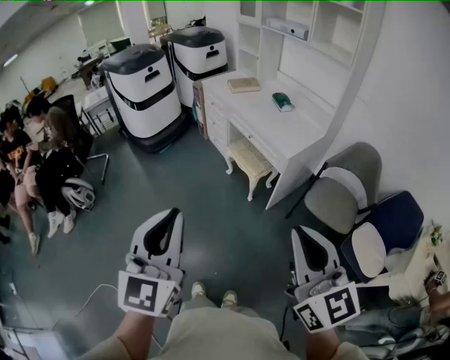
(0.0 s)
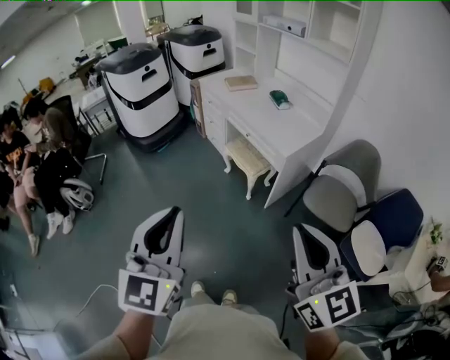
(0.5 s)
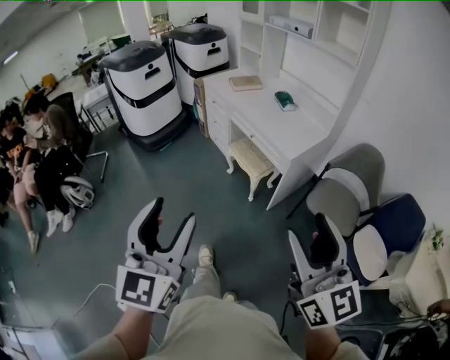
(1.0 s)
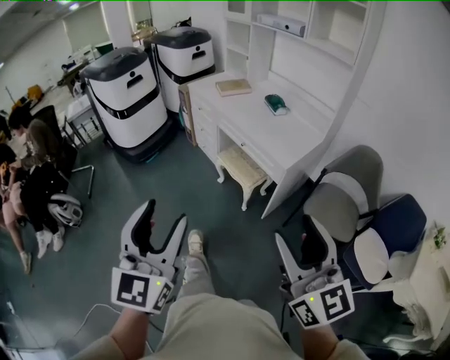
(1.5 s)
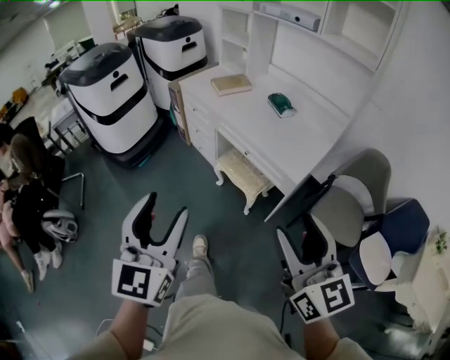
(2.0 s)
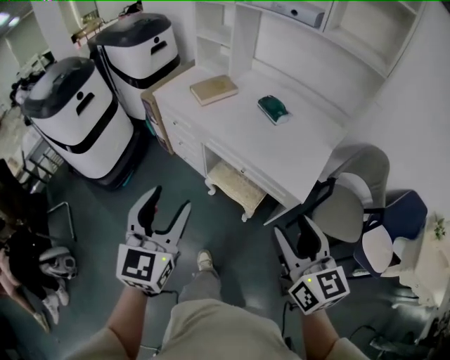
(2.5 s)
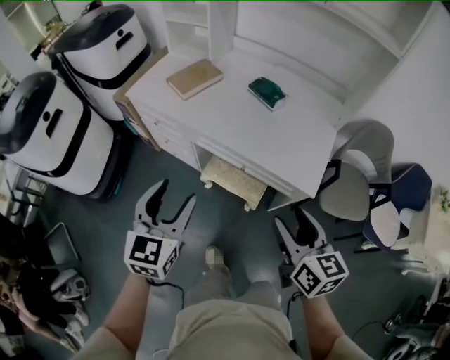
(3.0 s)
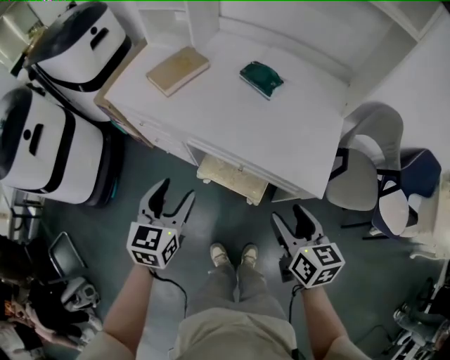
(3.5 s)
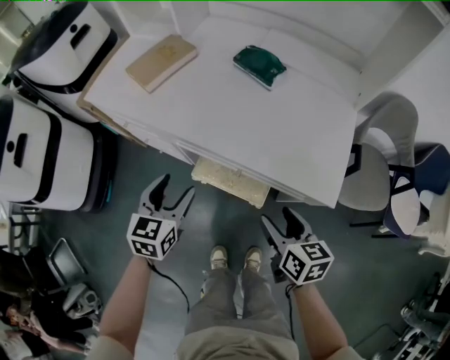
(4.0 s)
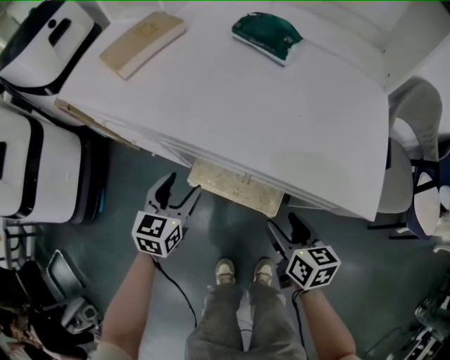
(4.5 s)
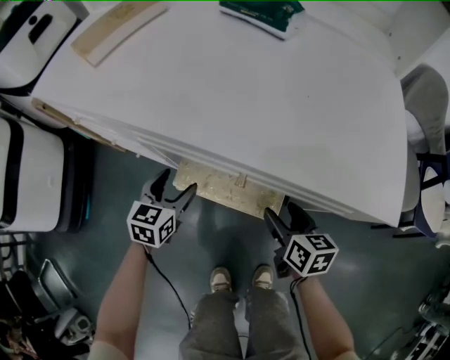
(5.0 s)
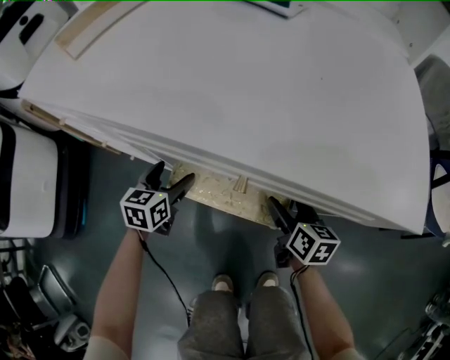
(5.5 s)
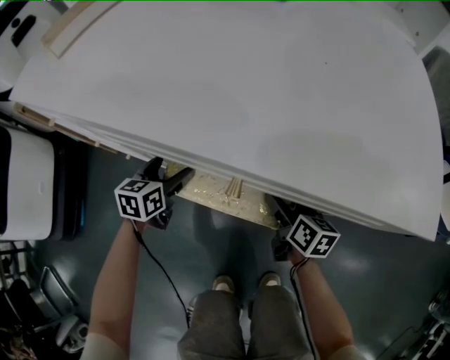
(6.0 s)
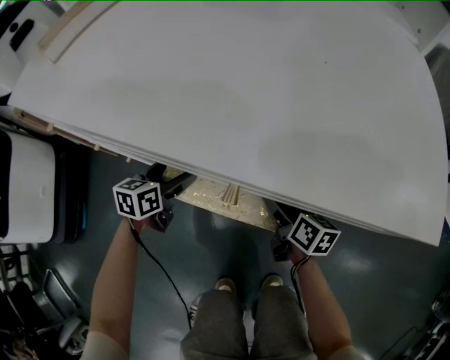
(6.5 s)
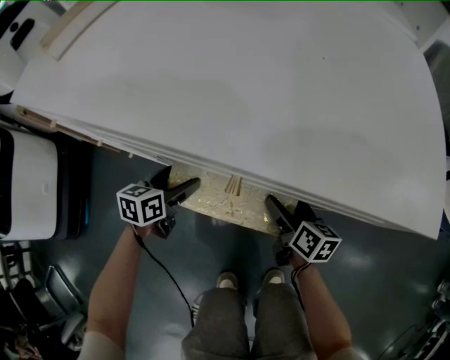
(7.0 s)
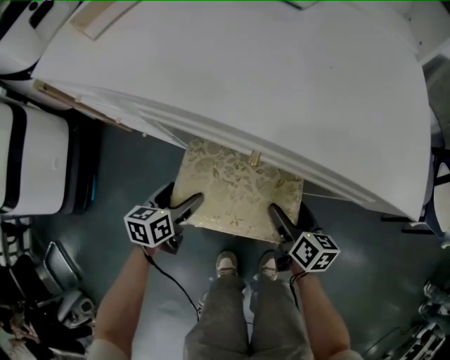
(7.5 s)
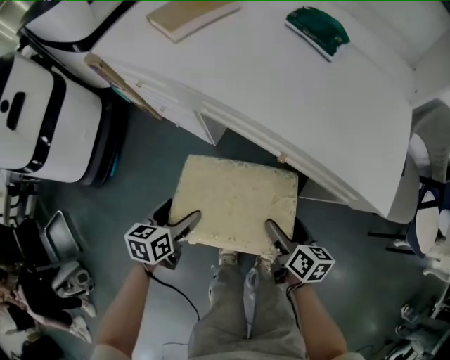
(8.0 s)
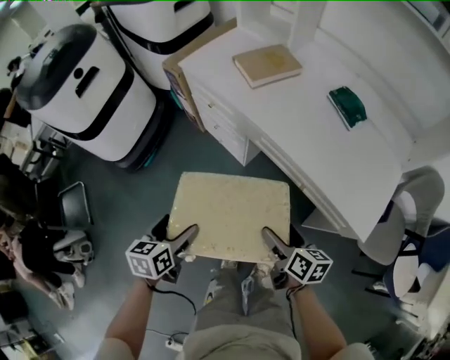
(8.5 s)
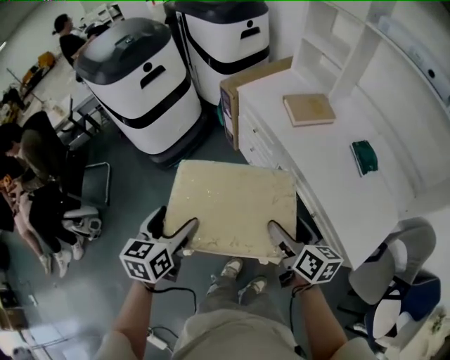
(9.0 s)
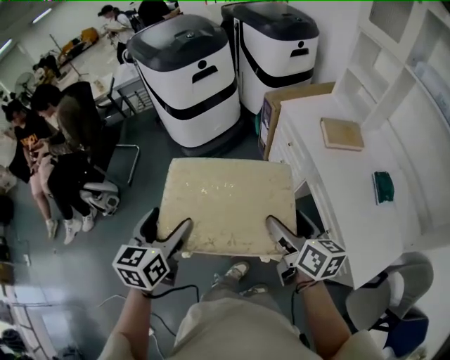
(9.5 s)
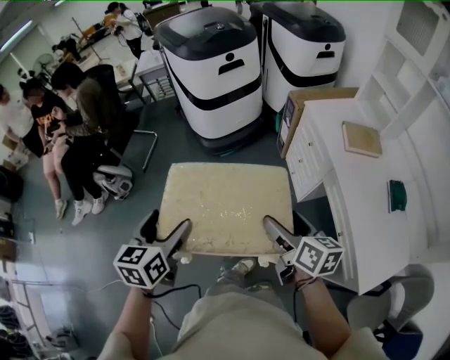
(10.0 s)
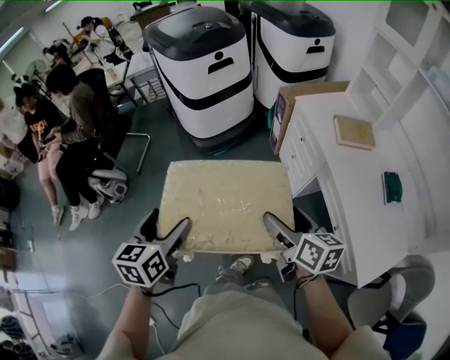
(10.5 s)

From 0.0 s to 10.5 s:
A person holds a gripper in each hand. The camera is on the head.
From 0.0 s to 2.0 s: The two grippers go about 30 cm forward. The right gripper opens its fingers, while the left gripper opens up.
From 2.0 s to 4.0 s: The right gripper travels downward and forward by approximately 50 cm, and points its fingers some 30 degrees further downward. The left gripper goes roughly 60 cm forward and downward, and rotates some 40 degrees.
From 4.0 s to 6.5 s: The two grippers go approximately 40 cm downward. The right gripper changes its angle by approximately 20 degrees, and opens its fingers. The left gripper turns by approximately 20 degrees, and opens.
From 6.5 s to 8.5 s: The grippers both shift upward by about 40 cm. The right gripper rotates about 30 degrees. Meanwhile the left gripper rotates approximately 40 degrees.
From 8.5 s to 10.5 s: Both grippers move upward, roughly 25 cm. The right gripper changes its angle by some 40 degrees. The left gripper rotates roughly 40 degrees.

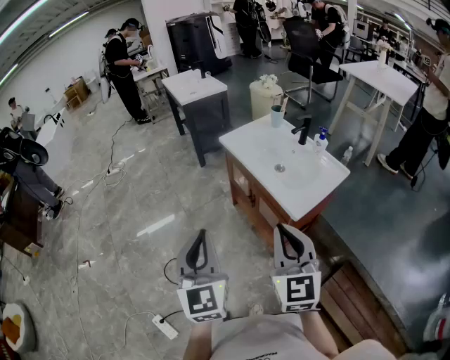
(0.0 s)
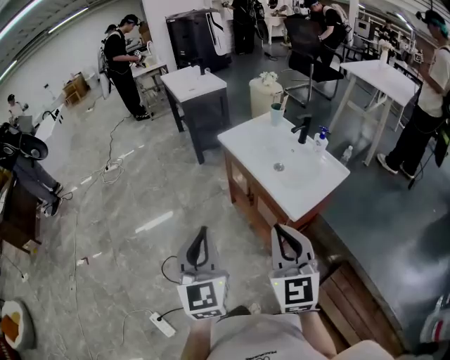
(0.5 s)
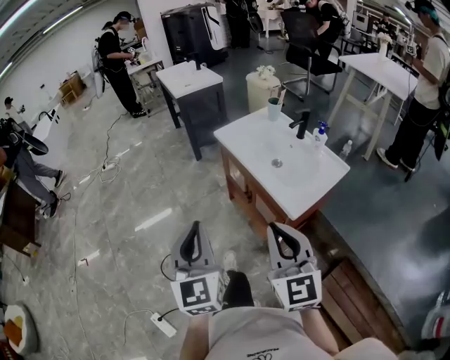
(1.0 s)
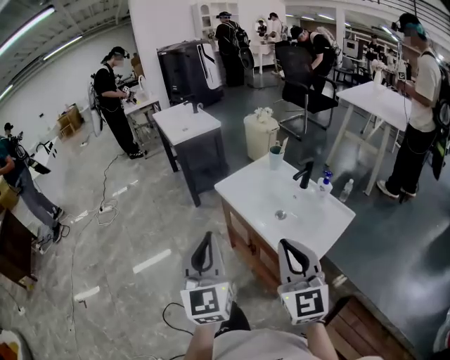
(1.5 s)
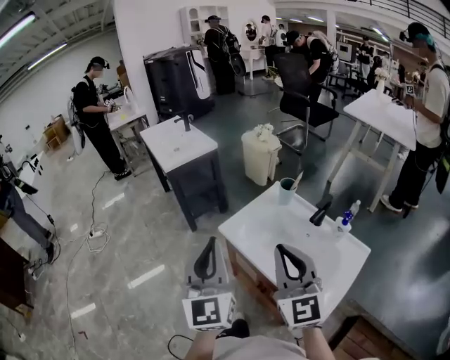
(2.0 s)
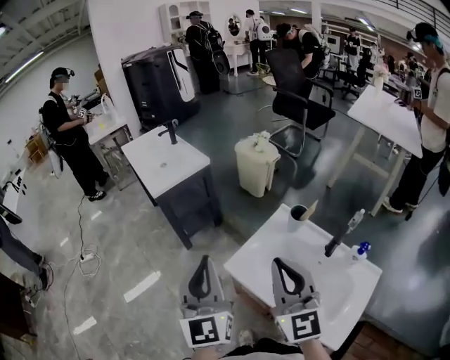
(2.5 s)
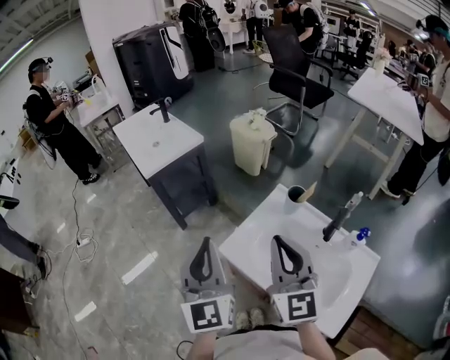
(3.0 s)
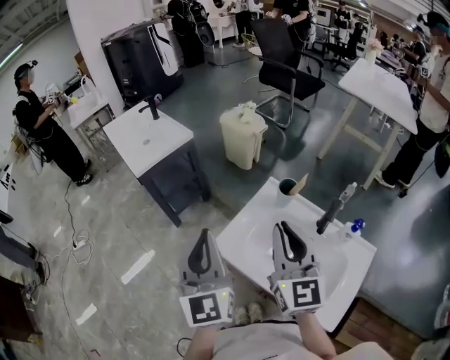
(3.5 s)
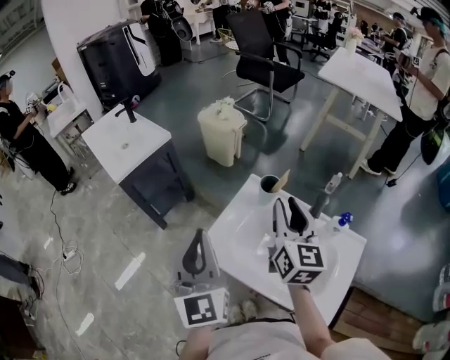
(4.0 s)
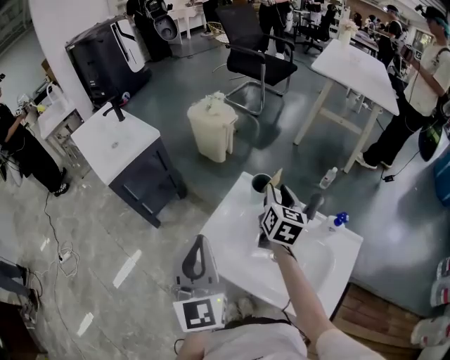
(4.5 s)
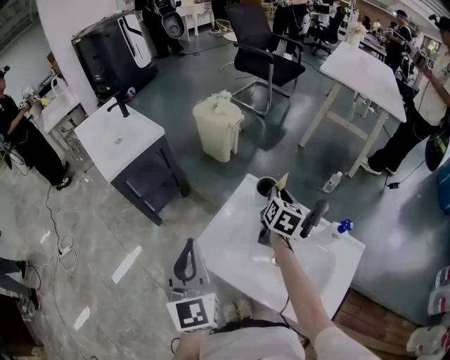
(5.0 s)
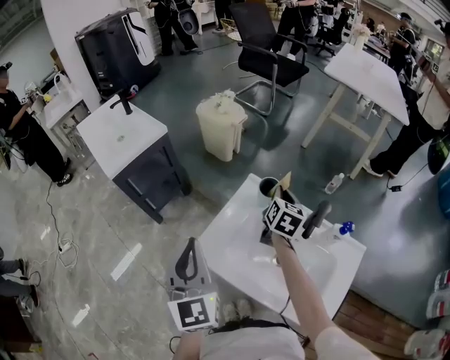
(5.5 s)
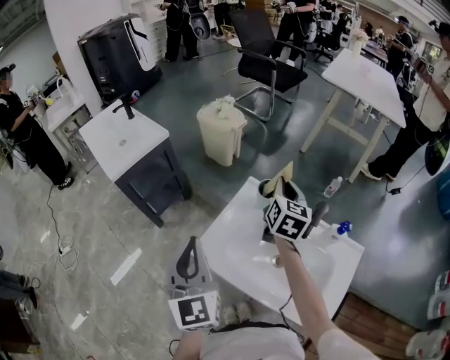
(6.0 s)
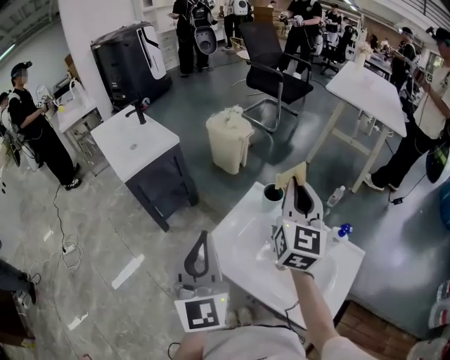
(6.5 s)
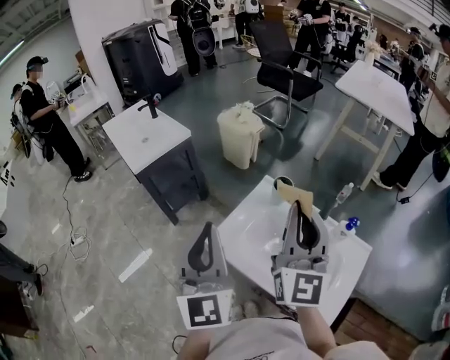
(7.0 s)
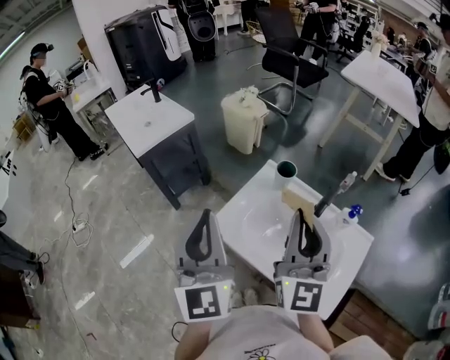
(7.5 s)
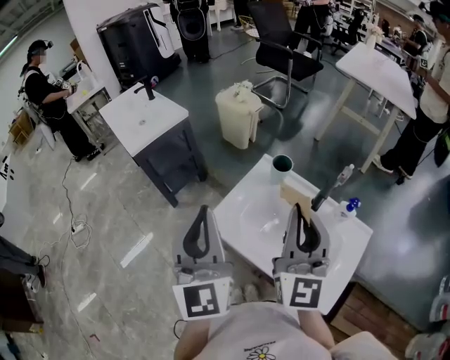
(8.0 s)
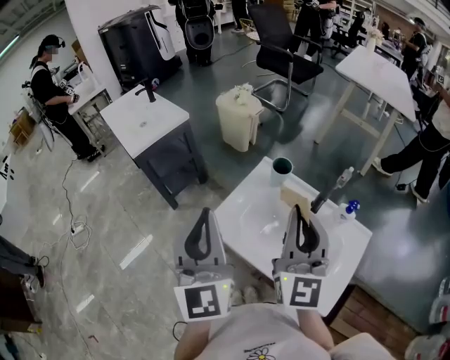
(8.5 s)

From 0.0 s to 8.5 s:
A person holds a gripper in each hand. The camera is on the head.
From 0.0 s to 2.0 s: Both grippers move forward, about 40 cm.
From 2.0 s to 4.0 s: Both grippers move forward, approximately 25 cm. The right gripper changes its angle by roughly 40 degrees.
From 4.0 s to 6.5 s: The right gripper reaches some 15 cm downward, then returns.
From 6.5 s to 8.5 s: The right gripper is displaced backward by roughly 15 cm.

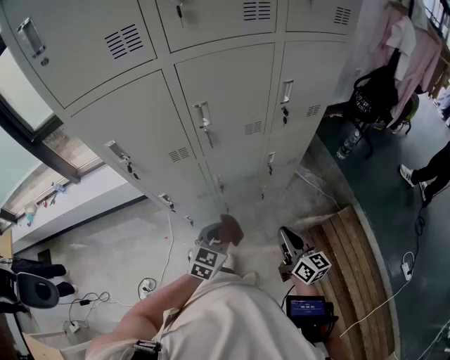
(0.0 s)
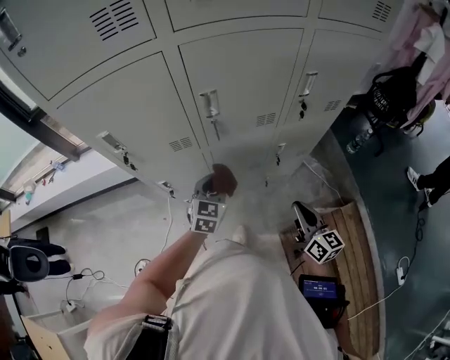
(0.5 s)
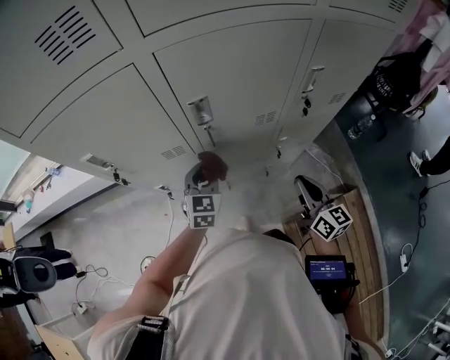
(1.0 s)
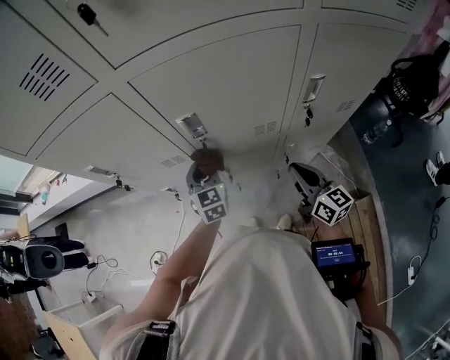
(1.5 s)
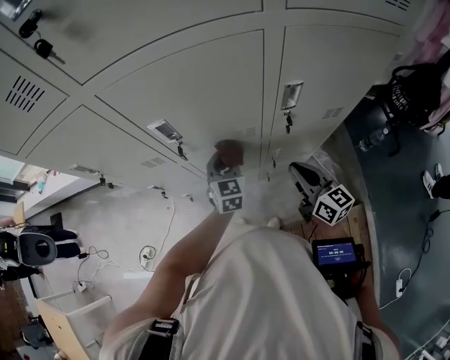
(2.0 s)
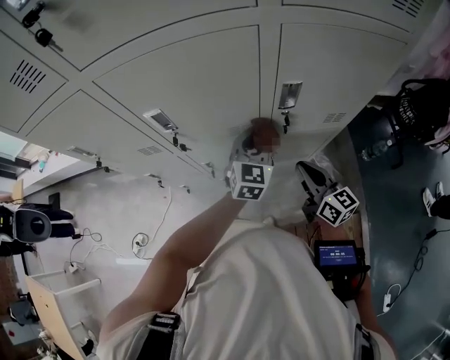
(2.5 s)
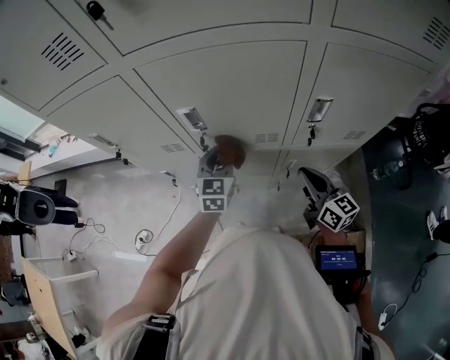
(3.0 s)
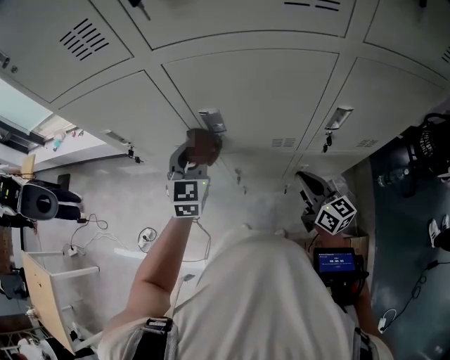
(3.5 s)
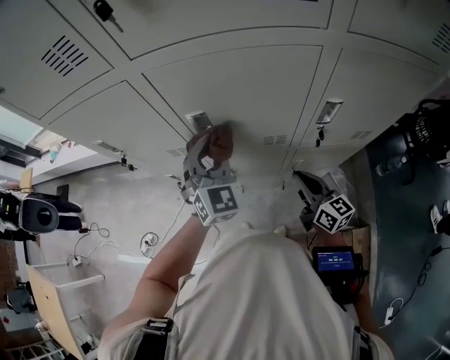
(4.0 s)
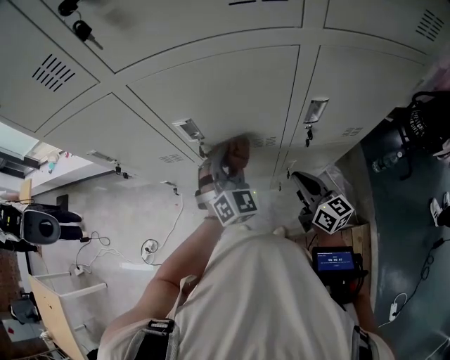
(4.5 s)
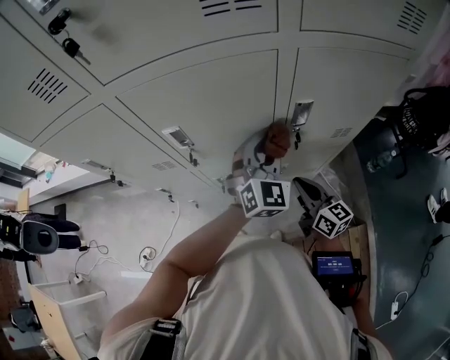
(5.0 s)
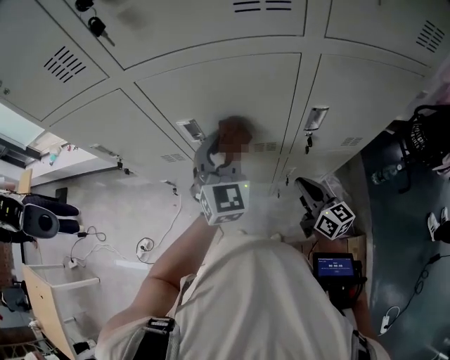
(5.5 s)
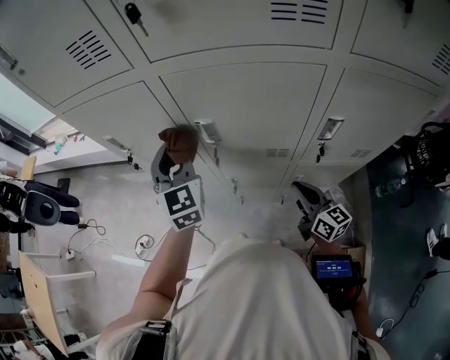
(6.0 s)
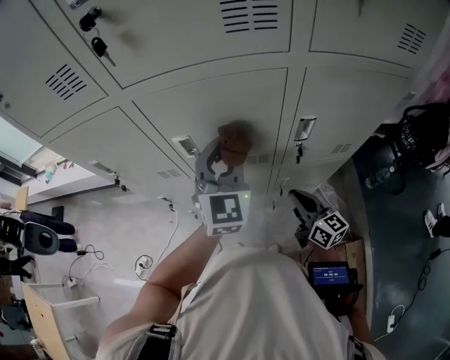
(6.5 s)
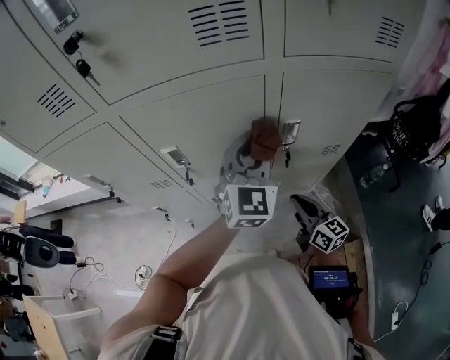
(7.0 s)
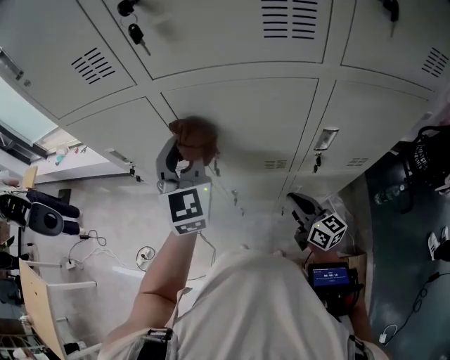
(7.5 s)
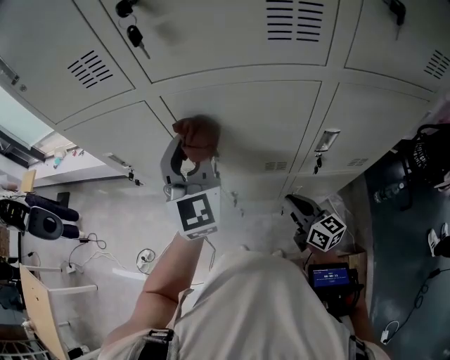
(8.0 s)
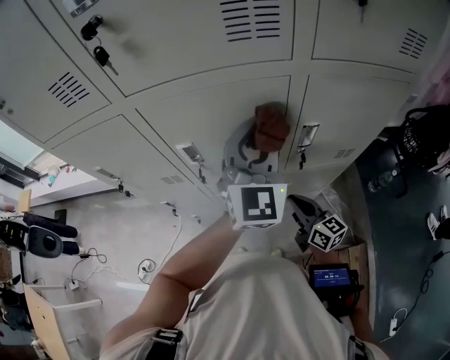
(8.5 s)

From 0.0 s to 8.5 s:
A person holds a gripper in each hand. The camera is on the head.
From 0.0 s to 2.0 s: The left gripper ends up roughly 35 cm from where it was, and rotates approximately 40 degrees, while the right gripper shifts by about 30 cm, and rotates about 20 degrees.
From 2.0 s to 4.0 s: The right gripper travels to the left by approximately 5 cm, while the left gripper swings left and right, about 30 cm each way, with 2 reversals, and rotates roughly 30 degrees.
From 4.0 s to 6.5 s: The left gripper goes left and right, some 30 cm each way, reversing 2 times.
From 6.5 s to 8.5 s: The left gripper swings left and right, approximately 25 cm each way, with 2 reversals. Meanwhile the right gripper moves about 5 cm to the left and comes back.
